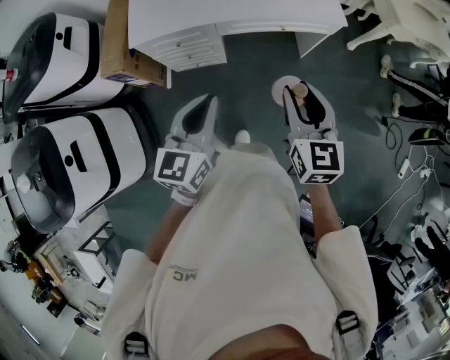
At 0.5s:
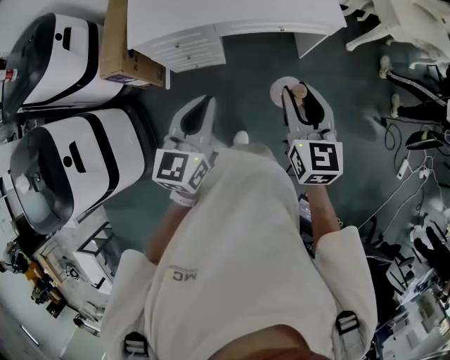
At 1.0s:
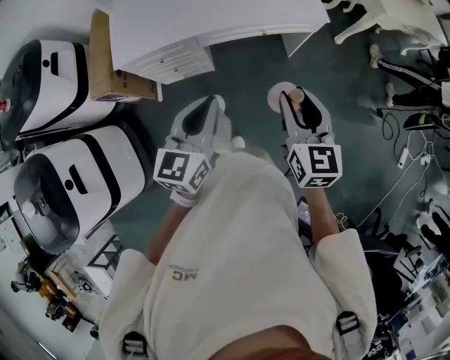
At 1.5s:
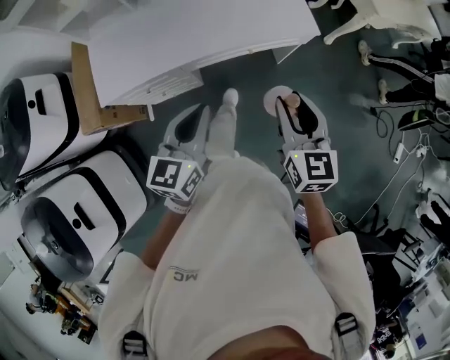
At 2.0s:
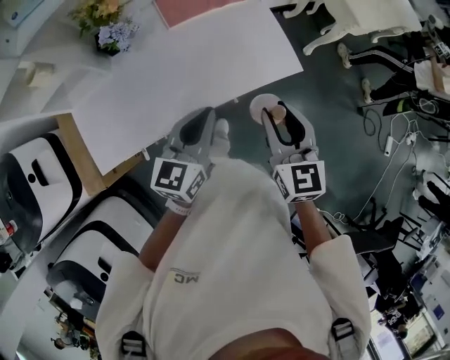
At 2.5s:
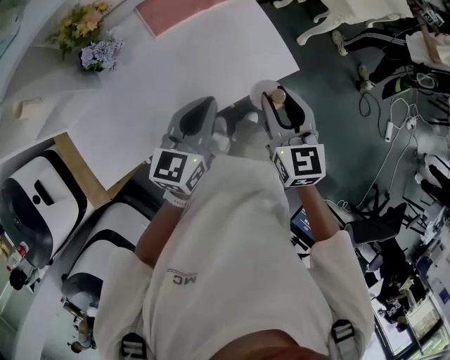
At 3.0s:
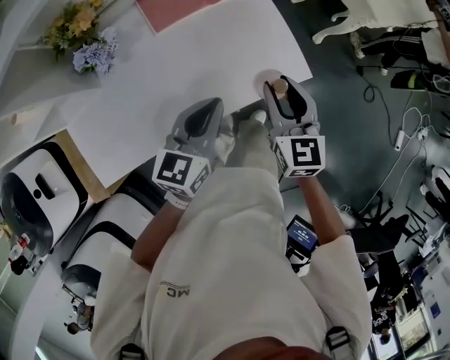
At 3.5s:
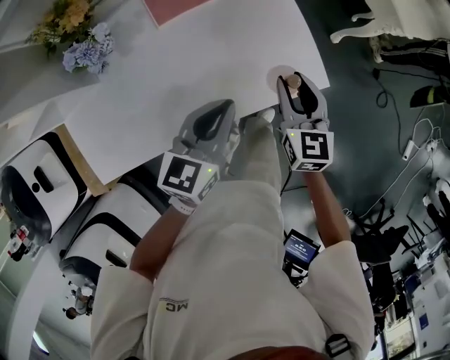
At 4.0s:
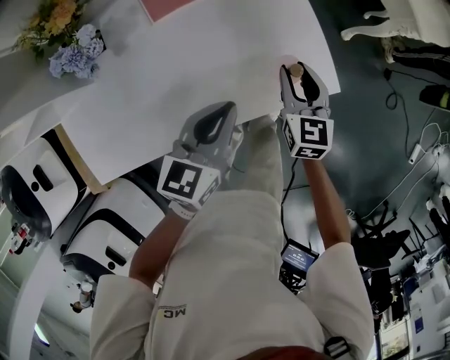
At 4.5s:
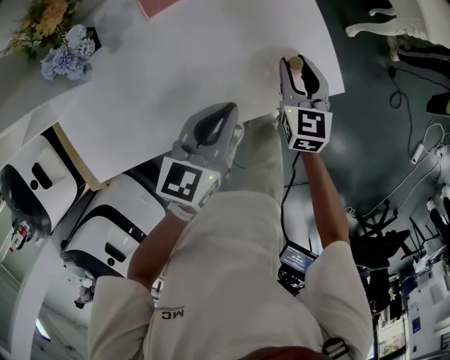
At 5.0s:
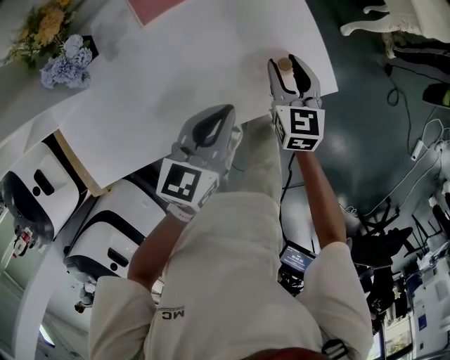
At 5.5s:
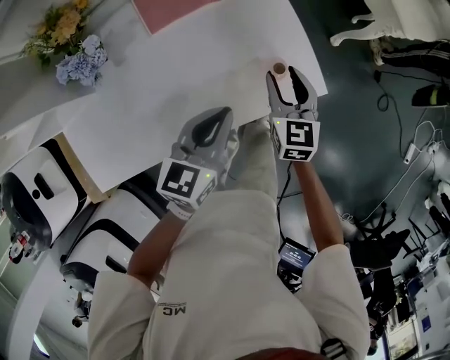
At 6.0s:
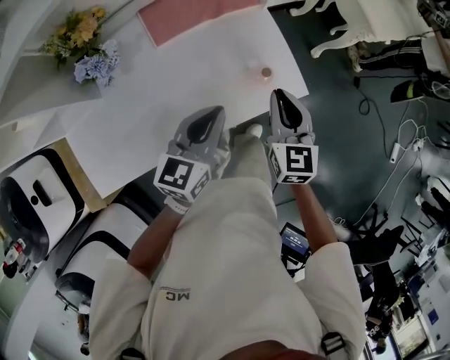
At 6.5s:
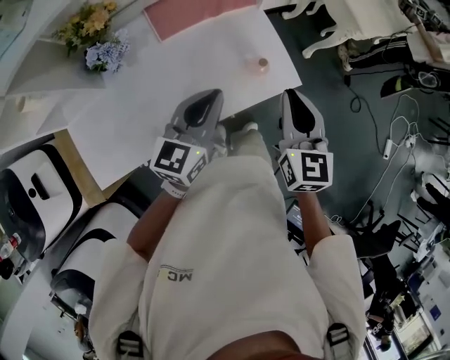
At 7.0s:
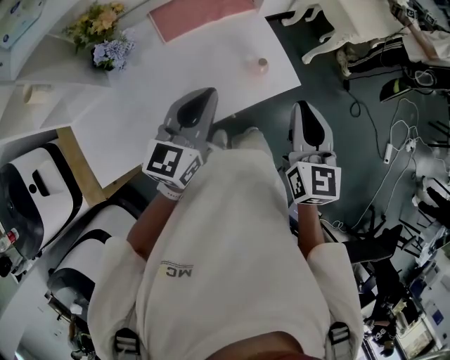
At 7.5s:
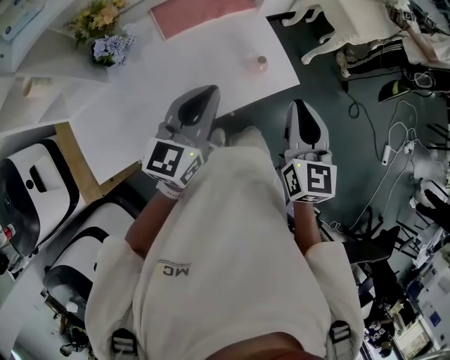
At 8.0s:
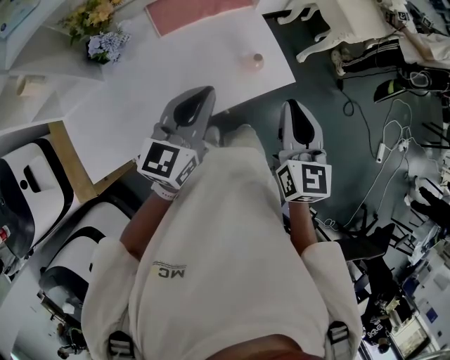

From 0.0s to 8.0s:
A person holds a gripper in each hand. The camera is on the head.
From 0.0s to 2.0s: Both grippers move forward, some 40 cm. The left gripper swivels roughly 20 degrees.
From 2.0s to 4.0s: The right gripper moves downward and forward, roughly 35 cm. Meanwhile the left gripper heads forward and downward, covering some 25 cm.
From 4.0s to 6.0s: The right gripper travels upward and backward by about 15 cm, and closes its fingers; the left gripper heads upward, covering approximately 10 cm.
From 6.0s to 8.0s: Both grippers move upward and backward, approximately 15 cm.

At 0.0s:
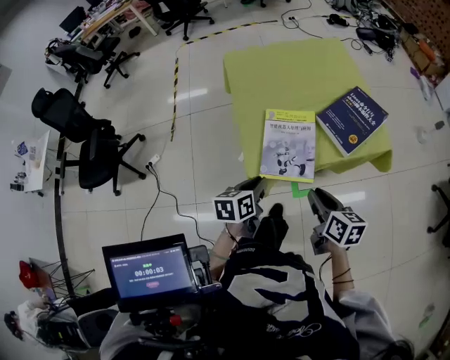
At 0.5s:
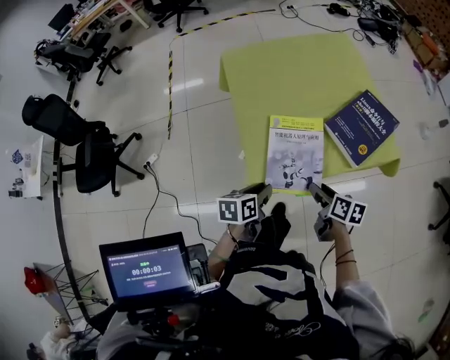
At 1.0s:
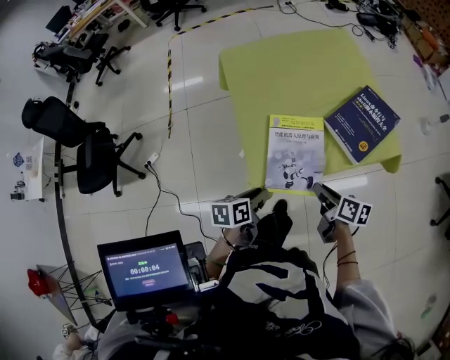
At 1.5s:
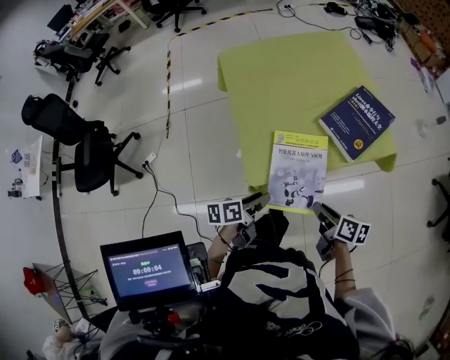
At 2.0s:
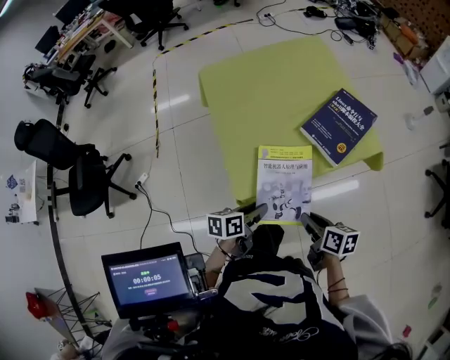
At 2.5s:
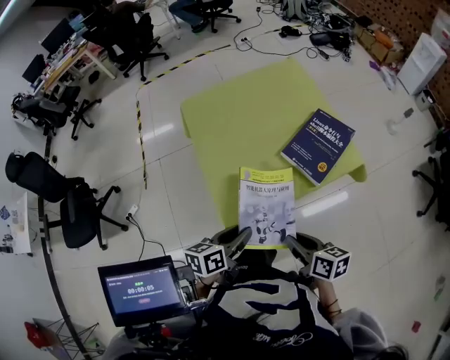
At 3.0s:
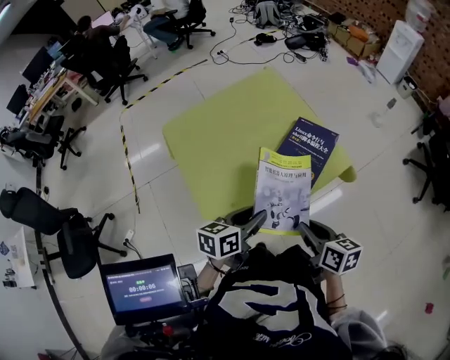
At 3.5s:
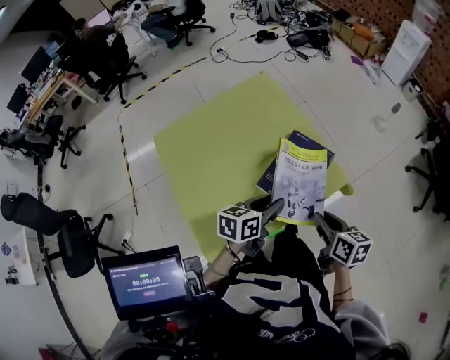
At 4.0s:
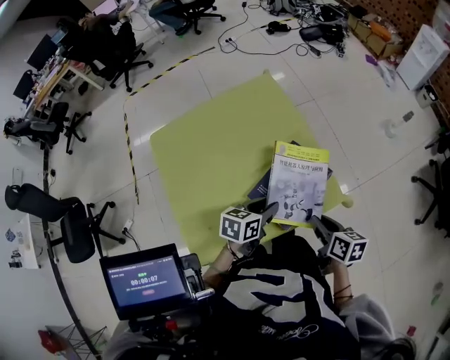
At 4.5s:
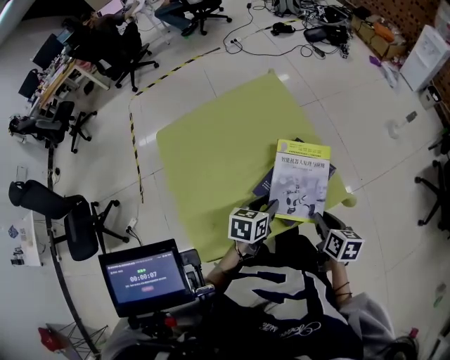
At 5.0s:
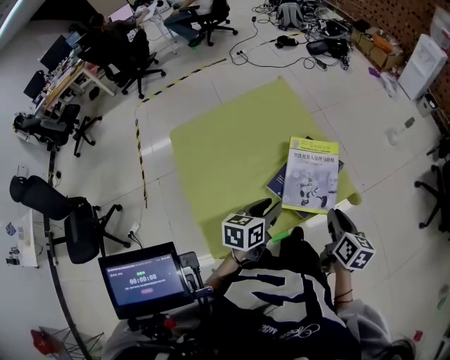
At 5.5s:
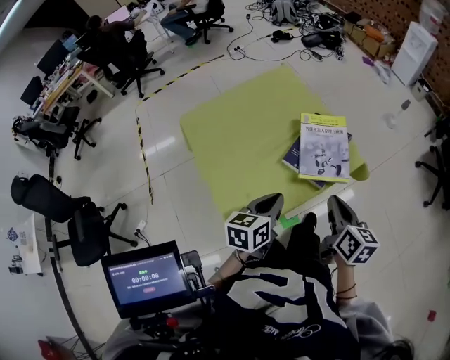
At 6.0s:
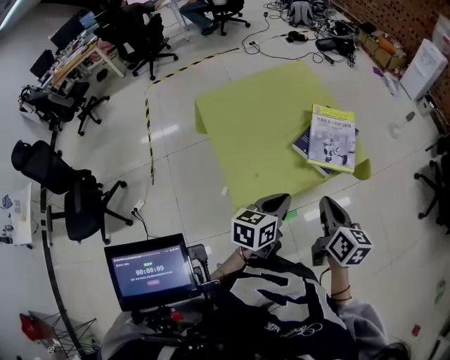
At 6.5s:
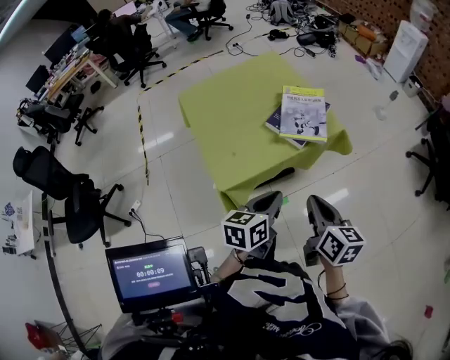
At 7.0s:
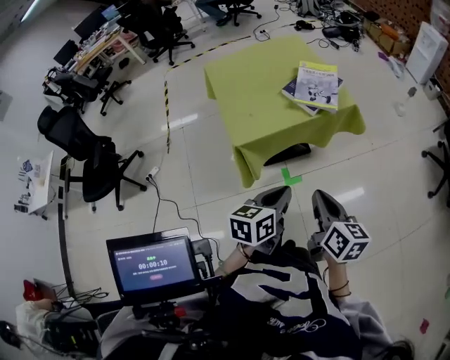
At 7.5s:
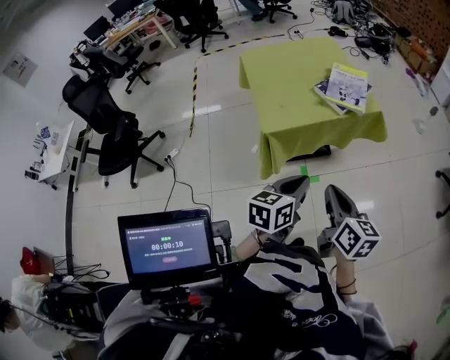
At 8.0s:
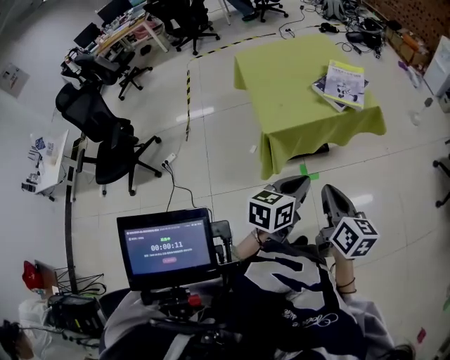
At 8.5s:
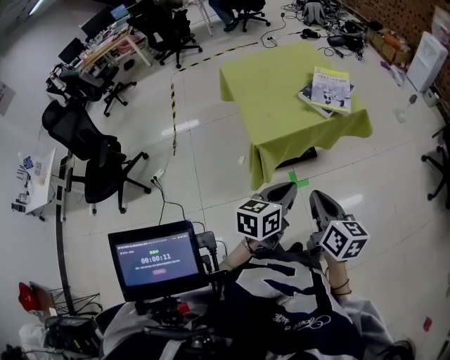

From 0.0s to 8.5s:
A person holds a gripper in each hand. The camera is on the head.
From 0.0s to 2.0s: The two grippers go some 5 cm downward. The left gripper opens up. Meanwhile the right gripper opens, then closes once more.
From 2.0s to 4.0s: The two grippers go some 30 cm forward and to the right. The left gripper rotates some 20 degrees.
From 4.0s to 6.5s: The right gripper goes roughly 35 cm backward and upward, and turns by roughly 20 degrees; the left gripper goes roughly 30 cm backward, and closes.
From 6.5s to 8.5s: The grippers both shift backward by some 20 cm.

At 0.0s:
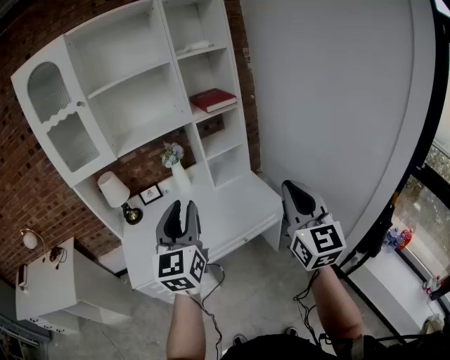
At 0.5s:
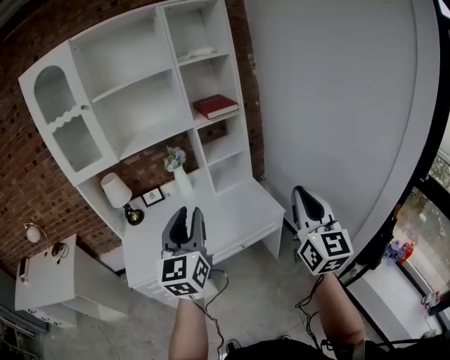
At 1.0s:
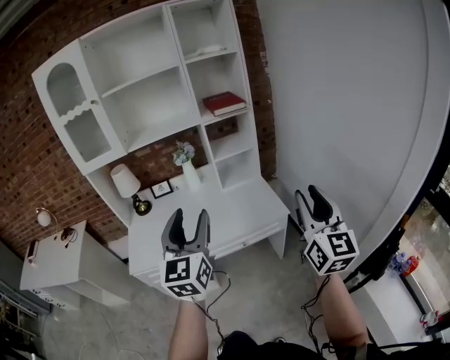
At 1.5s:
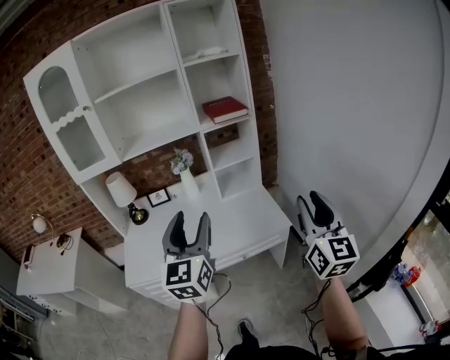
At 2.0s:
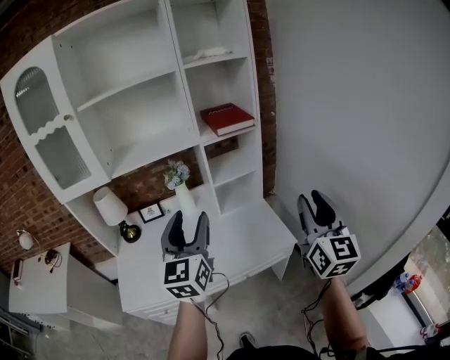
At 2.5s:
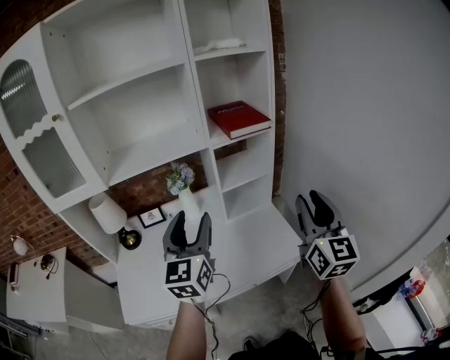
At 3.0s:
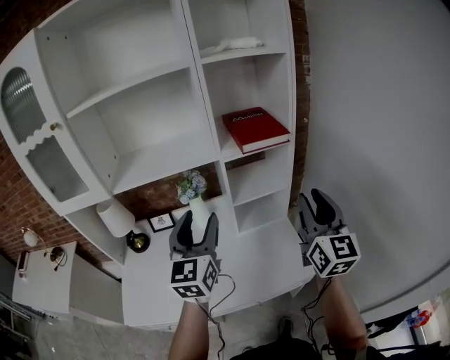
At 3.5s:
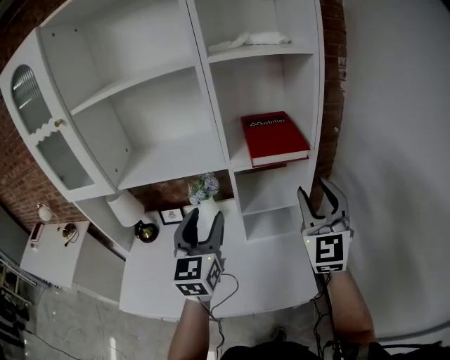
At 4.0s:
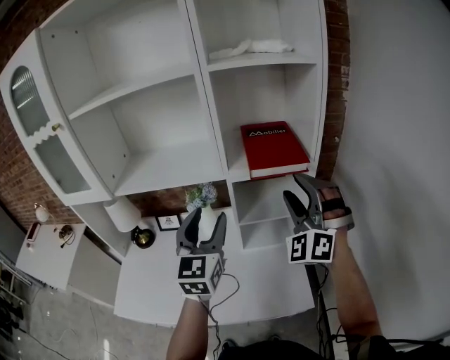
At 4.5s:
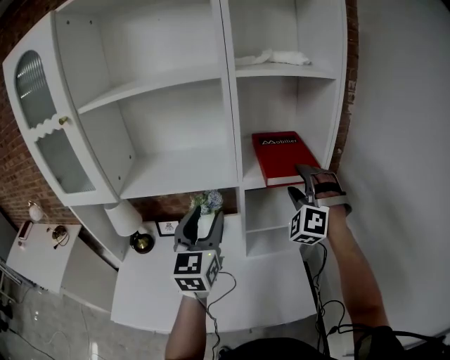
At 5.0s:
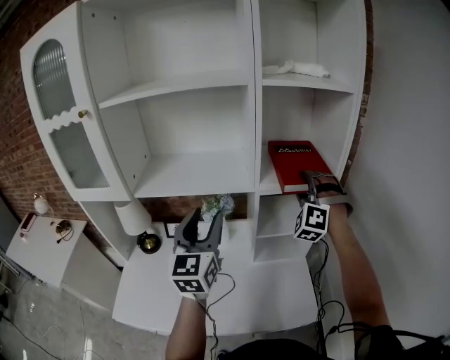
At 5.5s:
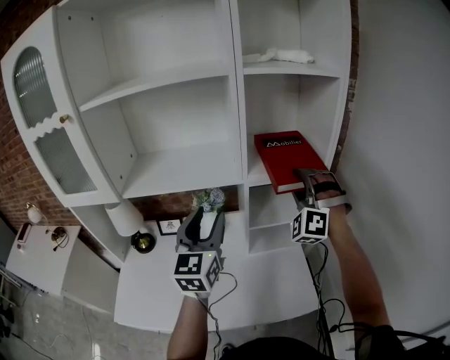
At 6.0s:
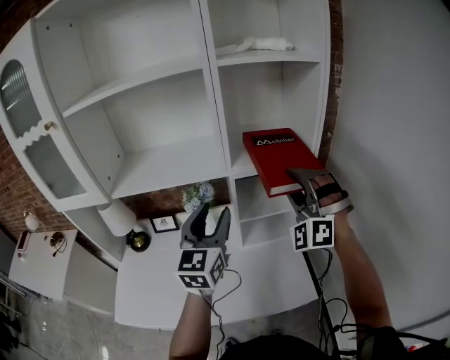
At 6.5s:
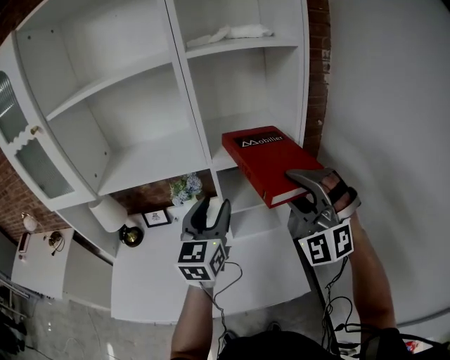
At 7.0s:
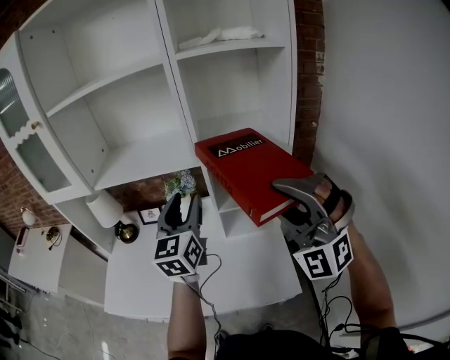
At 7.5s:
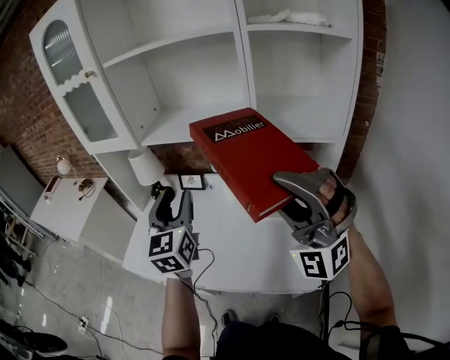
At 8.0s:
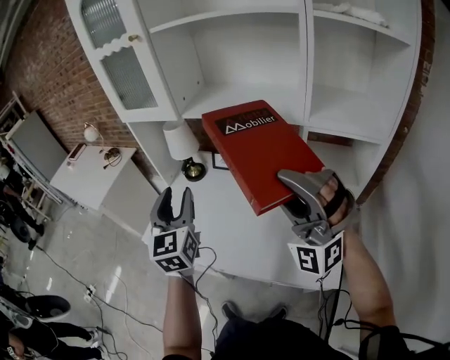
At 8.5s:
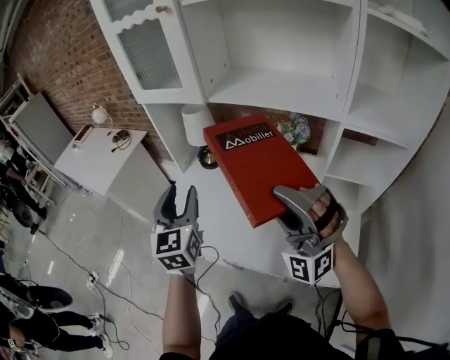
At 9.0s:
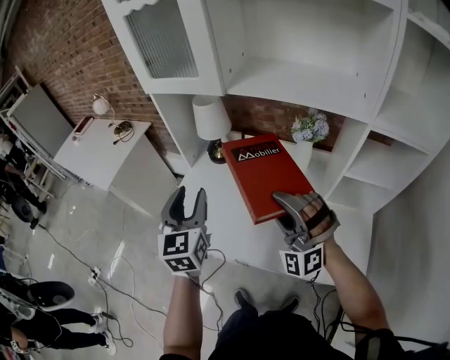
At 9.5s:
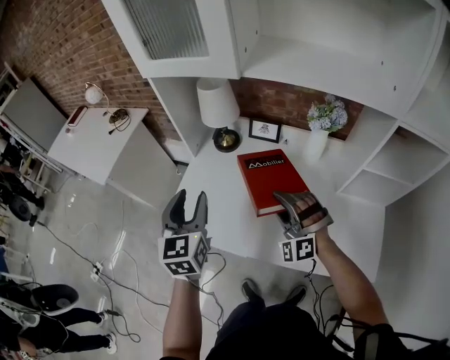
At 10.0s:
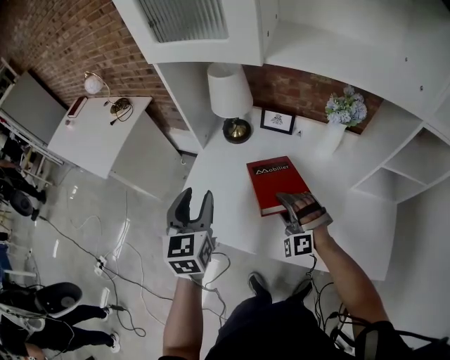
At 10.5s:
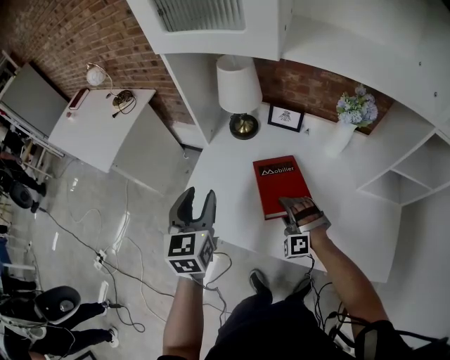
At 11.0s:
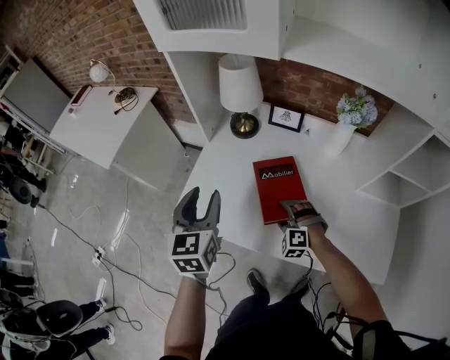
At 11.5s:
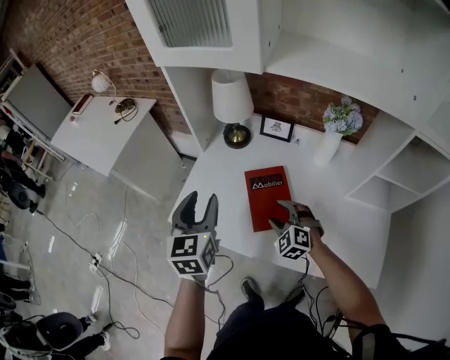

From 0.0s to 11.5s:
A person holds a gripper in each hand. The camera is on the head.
From 0.0s to 2.0s: The right gripper shifts about 20 cm forward and to the right, and opens. Meanwhile the left gripper shifts approximately 20 cm forward, and opens up.
From 2.0s to 4.0s: The two grippers go roughly 30 cm forward. The right gripper rolls counterclockwise, seen from behind, by some 70 degrees.
From 4.0s to 6.0s: The left gripper travels to the left and back again, some 10 cm each way. Meanwhile the right gripper reaches some 10 cm forward, then returns.
From 6.0s to 7.5s: The left gripper shifts by roughly 15 cm, and changes its angle by about 30 degrees; the right gripper moves roughly 20 cm, and changes its angle by about 40 degrees.
From 7.5s to 9.5s: The right gripper travels downward, to the left and forward by roughly 50 cm, and changes its angle by about 30 degrees. The left gripper shifts about 35 cm to the left, downward and forward.
From 9.5s to 11.5s: The right gripper travels downward by roughly 10 cm, and changes its angle by approximately 40 degrees.
